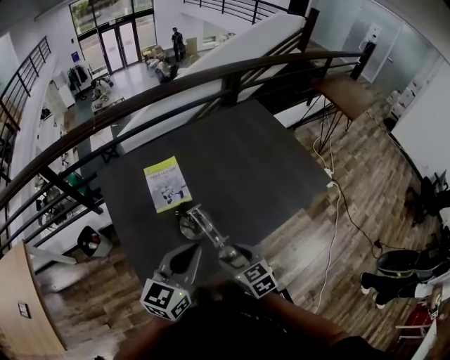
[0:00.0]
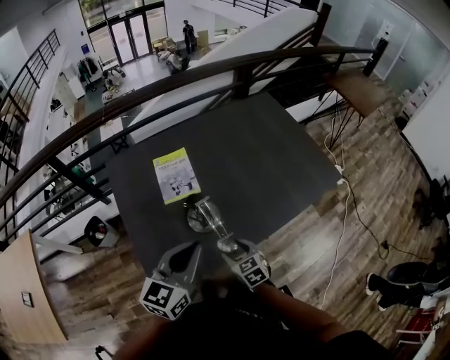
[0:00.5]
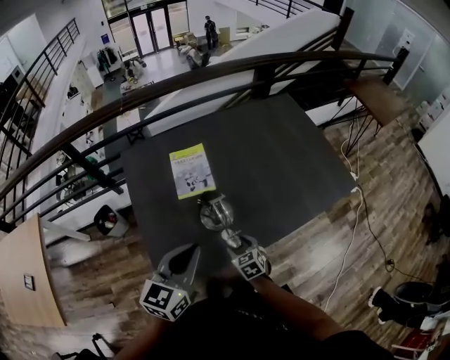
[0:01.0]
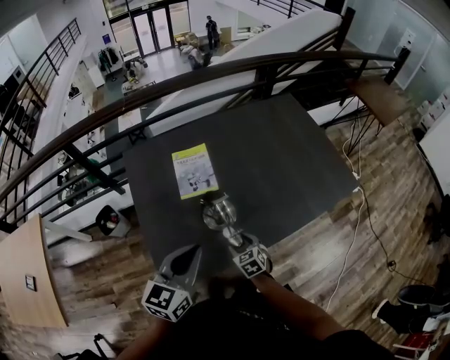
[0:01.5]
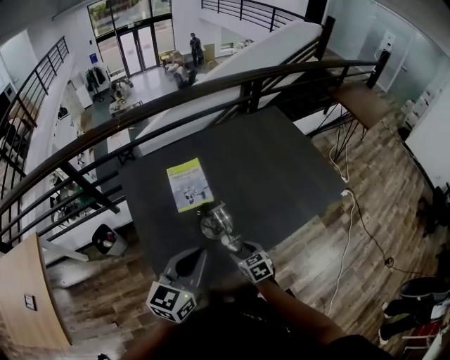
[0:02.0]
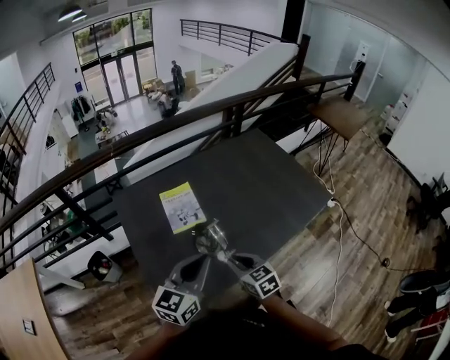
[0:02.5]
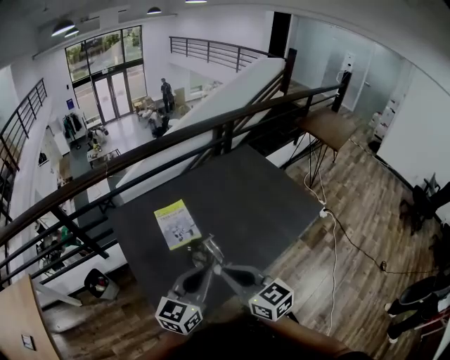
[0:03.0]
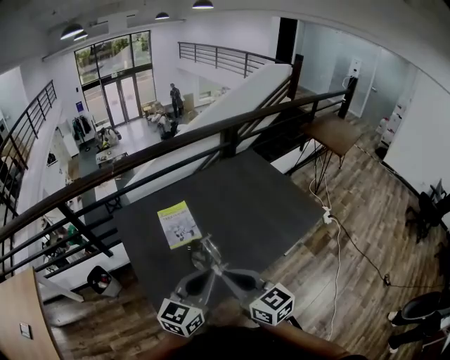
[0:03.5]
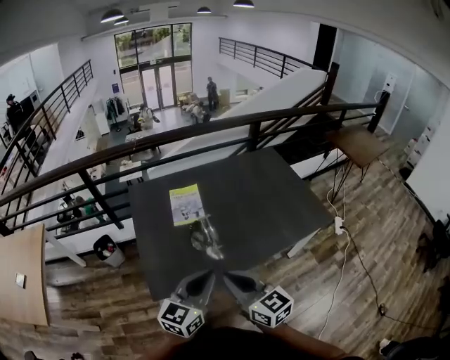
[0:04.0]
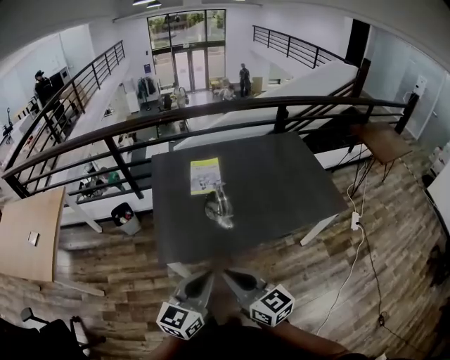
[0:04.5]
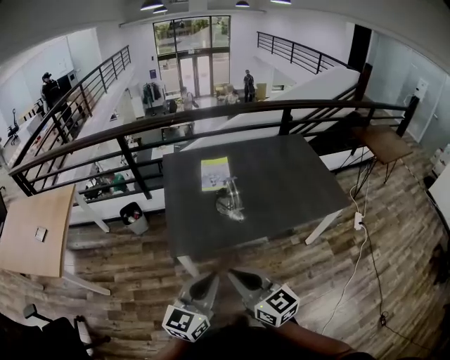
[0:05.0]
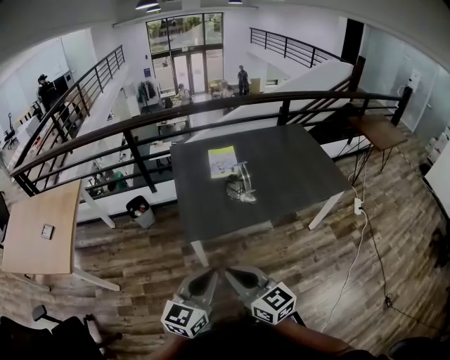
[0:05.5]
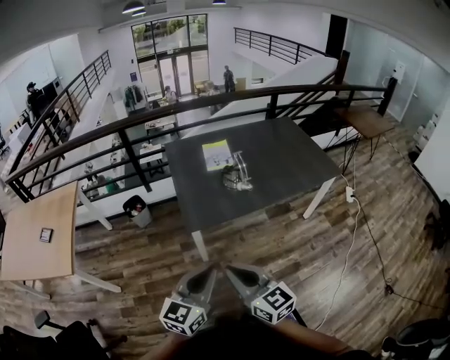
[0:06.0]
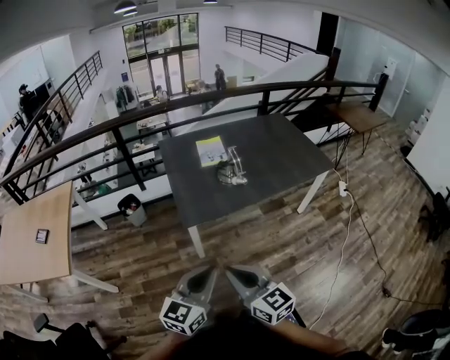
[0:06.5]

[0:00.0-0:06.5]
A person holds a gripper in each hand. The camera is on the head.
0:00.0 to 0:02.0: The right gripper is displaced downward by roughly 10 cm; the left gripper is displaced to the left by about 5 cm.
0:02.0 to 0:04.5: The right gripper goes some 40 cm upward and backward, angles its fingers upward, by approximately 40 degrees, and closes its fingers. The left gripper is displaced backward by some 25 cm.
0:04.5 to 0:06.5: The two grippers go about 25 cm backward and to the left.

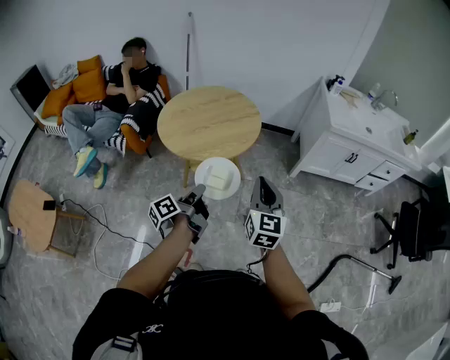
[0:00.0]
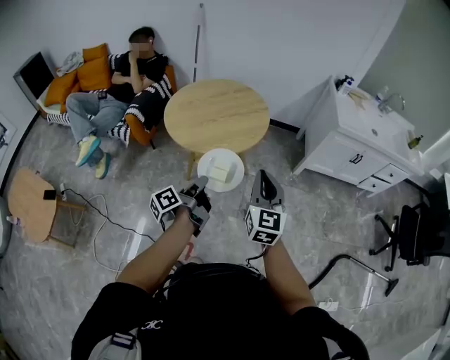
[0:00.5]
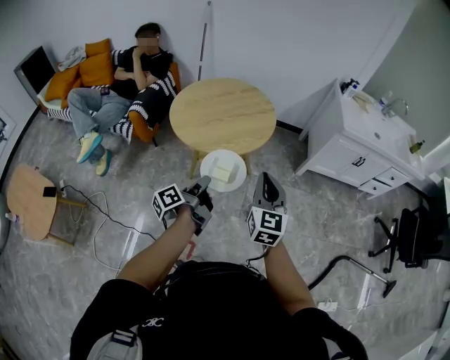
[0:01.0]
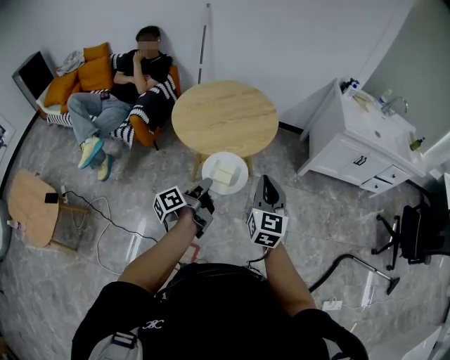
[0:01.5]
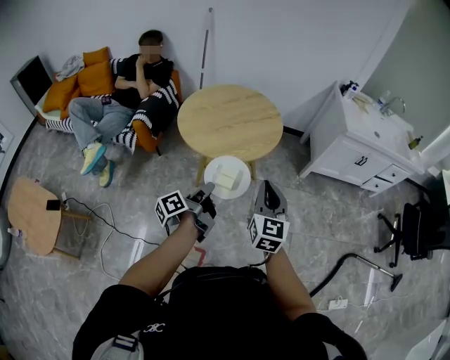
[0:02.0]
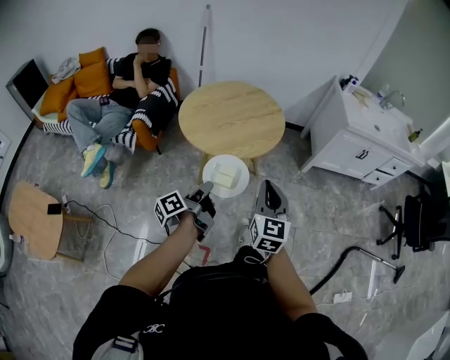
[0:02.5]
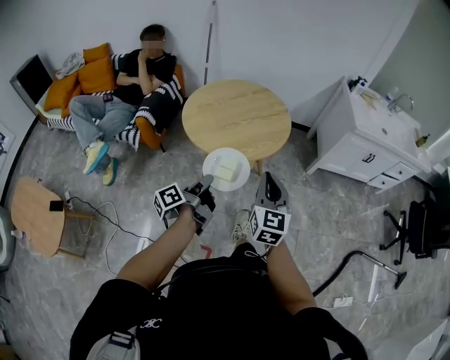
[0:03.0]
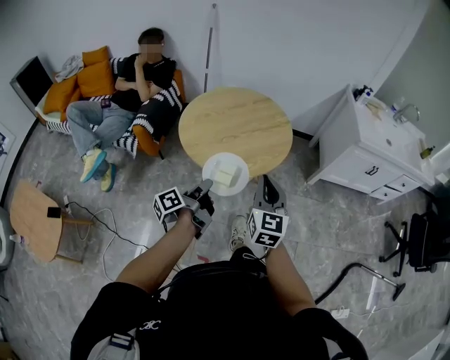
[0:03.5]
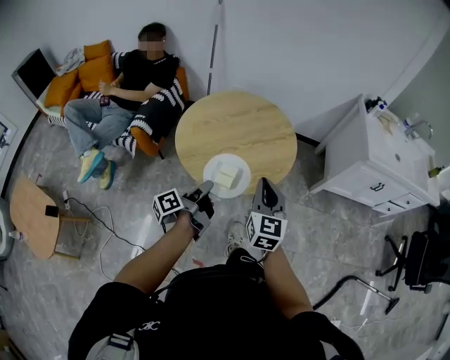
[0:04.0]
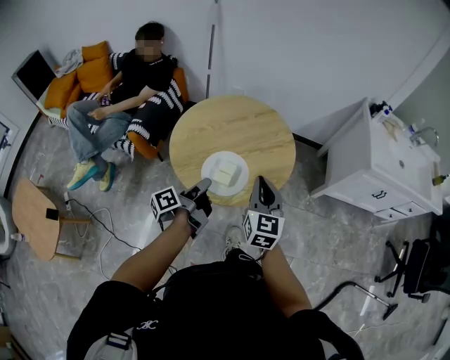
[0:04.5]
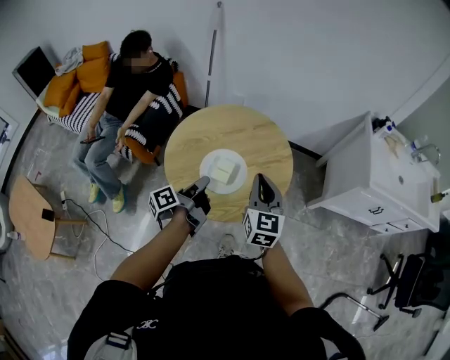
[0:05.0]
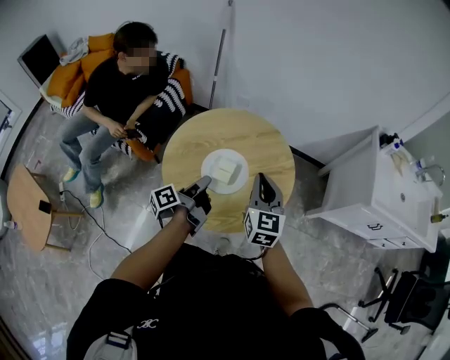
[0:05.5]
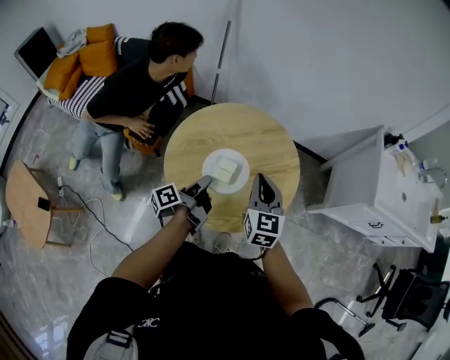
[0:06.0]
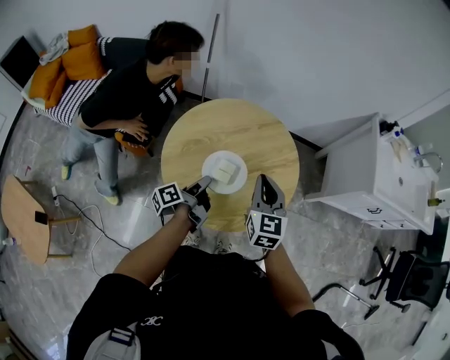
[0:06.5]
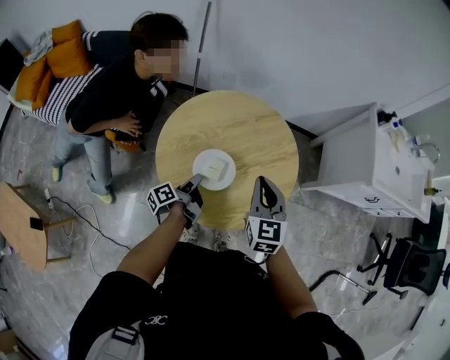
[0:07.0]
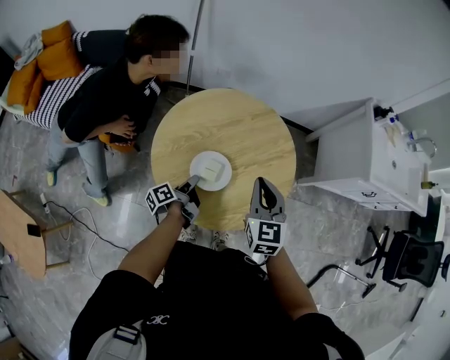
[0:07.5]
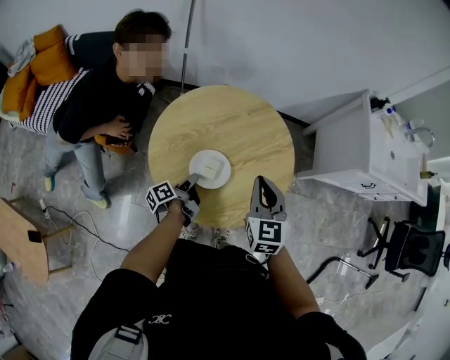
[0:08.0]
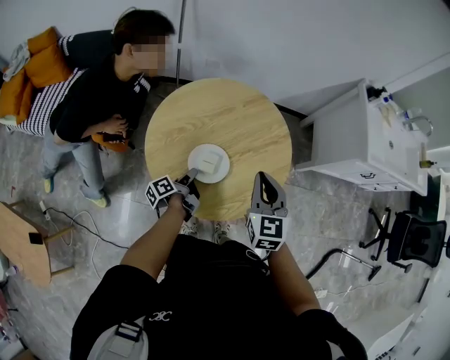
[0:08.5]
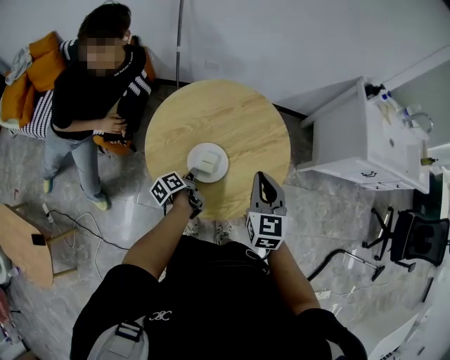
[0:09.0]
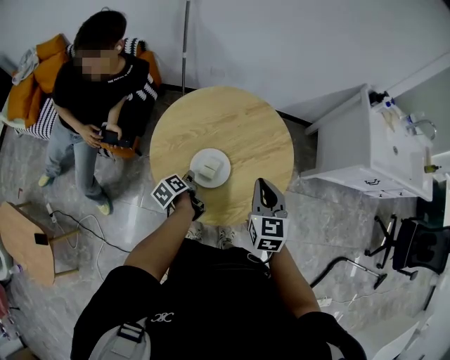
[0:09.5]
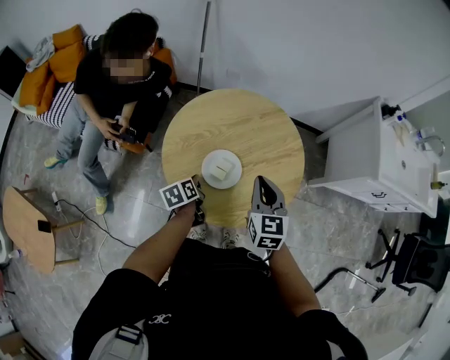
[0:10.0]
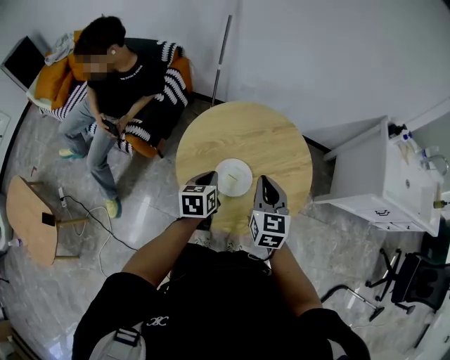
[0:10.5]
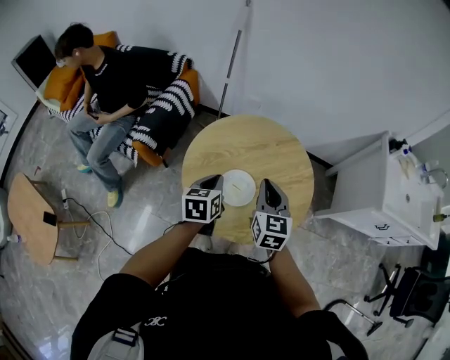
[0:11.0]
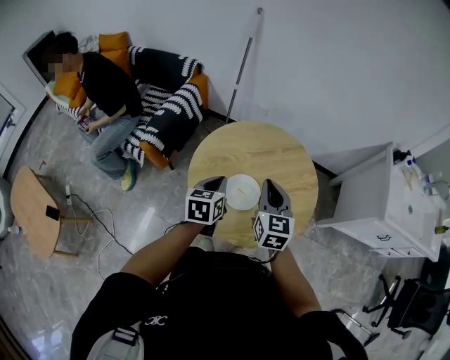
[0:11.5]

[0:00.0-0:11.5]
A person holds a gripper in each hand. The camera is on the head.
0:00.0 to 0:02.0: The right gripper shifts by about 10 cm.
0:02.0 to 0:04.0: The right gripper moves approximately 20 cm.
0:04.0 to 0:06.0: The right gripper changes place by approximately 20 cm.
0:09.5 to 0:11.5: The right gripper shifts by approximately 10 cm.

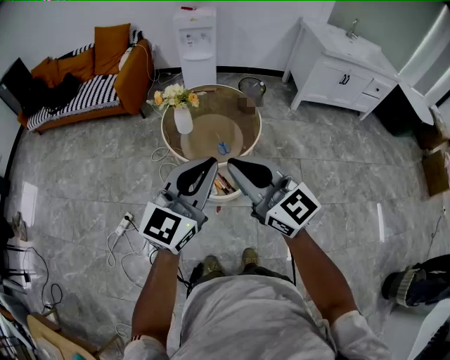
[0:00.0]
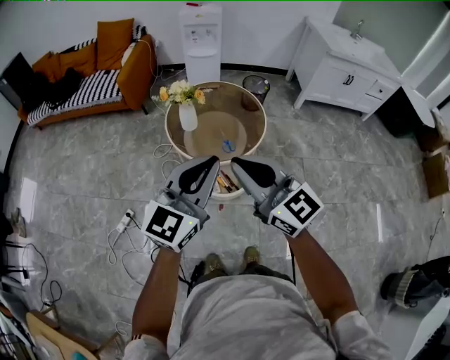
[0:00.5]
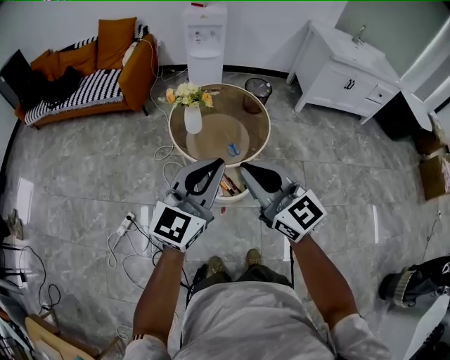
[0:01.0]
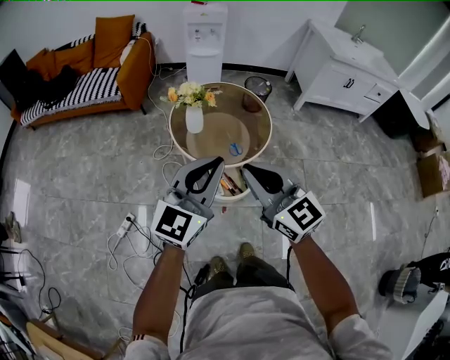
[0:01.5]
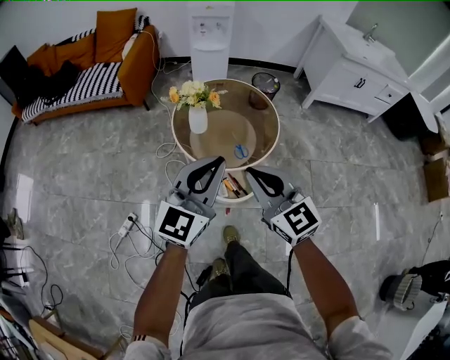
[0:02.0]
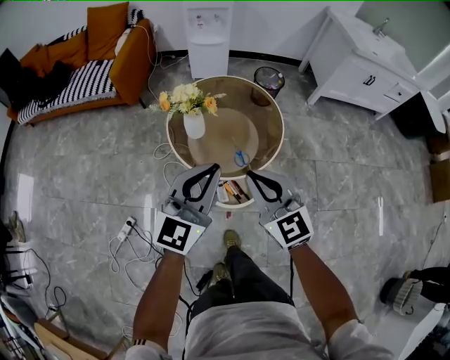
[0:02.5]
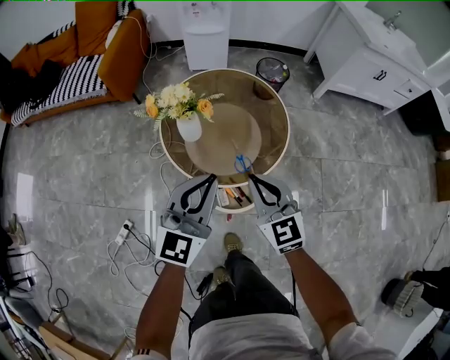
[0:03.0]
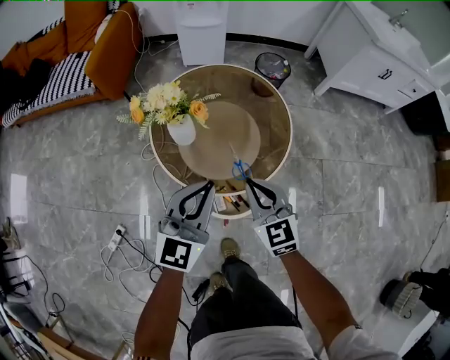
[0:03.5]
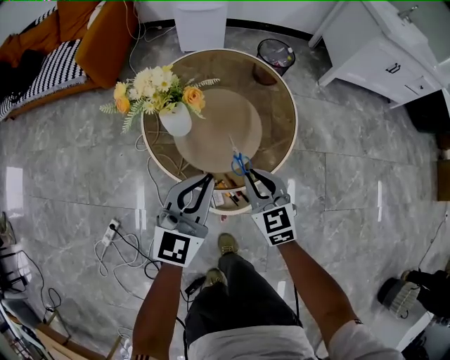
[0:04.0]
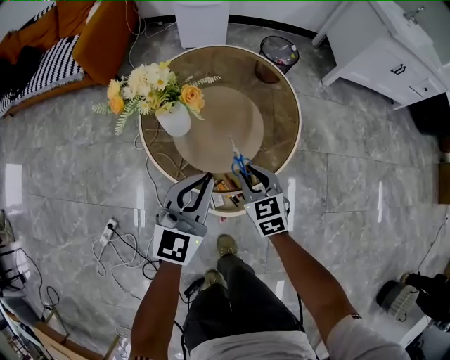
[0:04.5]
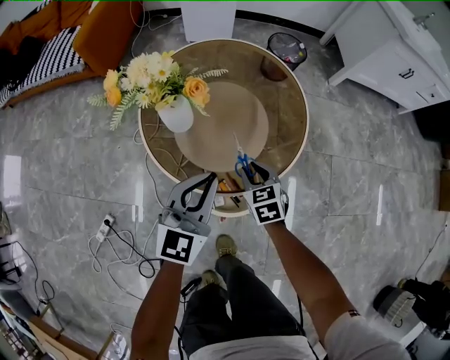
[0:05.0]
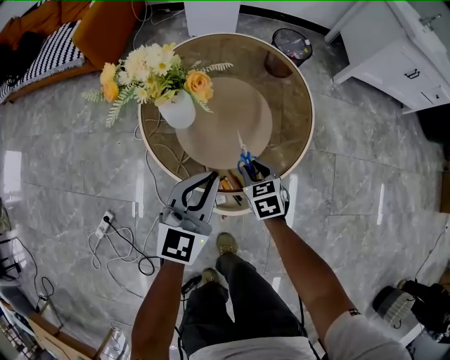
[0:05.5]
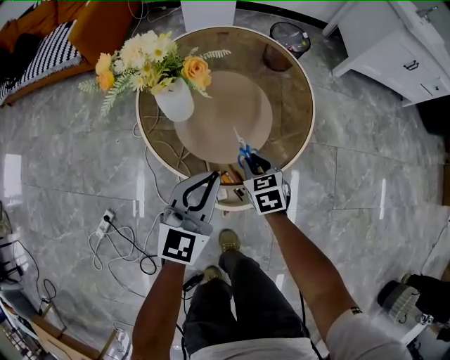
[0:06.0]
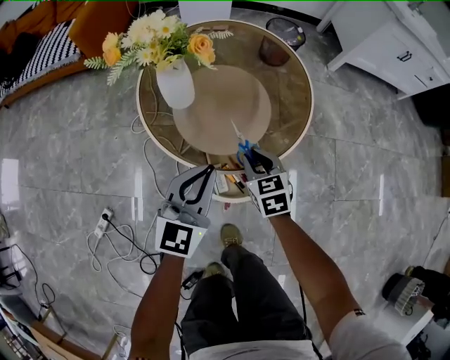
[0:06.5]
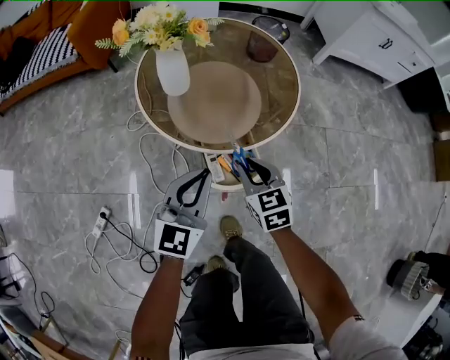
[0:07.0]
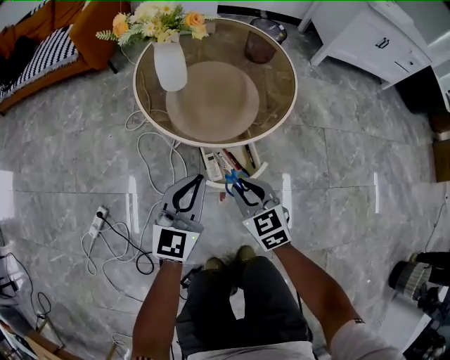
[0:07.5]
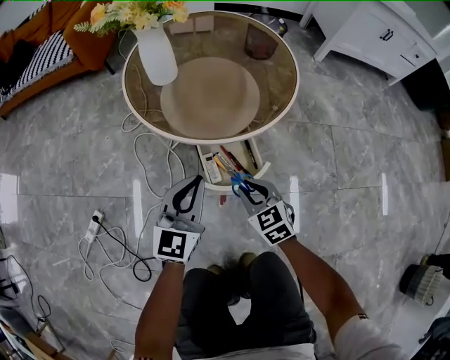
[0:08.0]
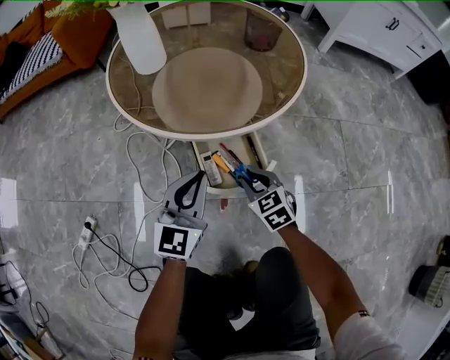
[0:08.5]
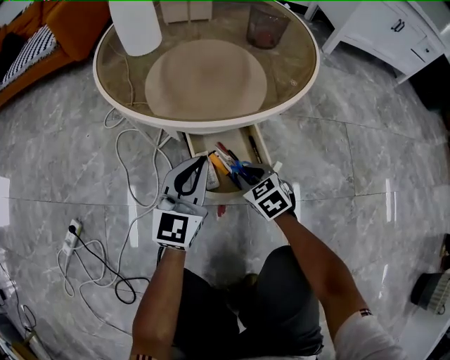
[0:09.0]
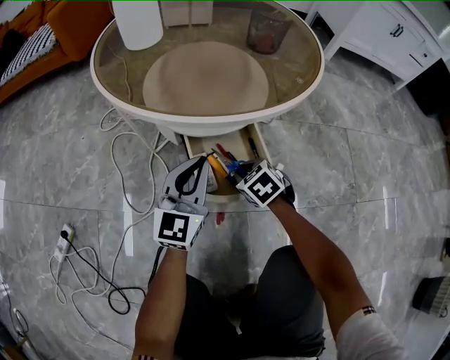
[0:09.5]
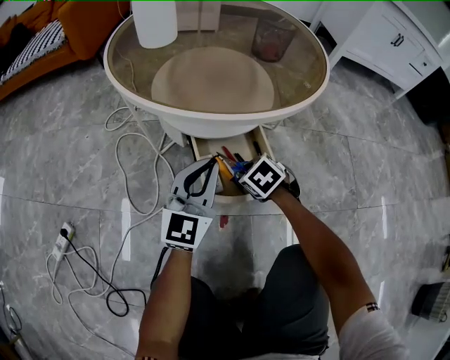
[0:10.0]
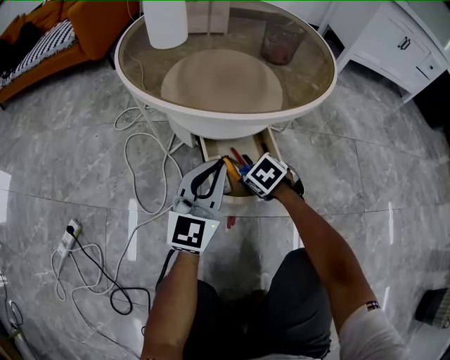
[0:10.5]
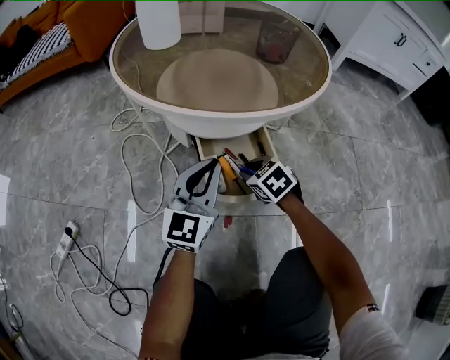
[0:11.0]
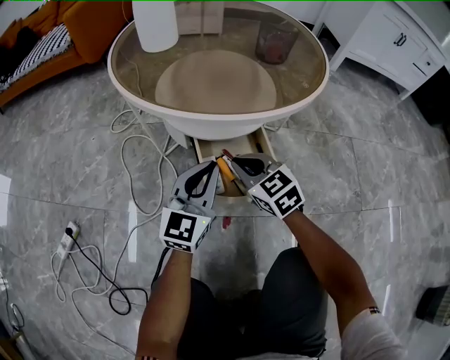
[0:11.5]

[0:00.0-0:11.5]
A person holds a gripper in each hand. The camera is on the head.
0:00.0 to 0:02.0: The left gripper goes about 15 cm forward, to the left and downward, while the right gripper travels downward, forward and to the left by about 15 cm.
0:02.0 to 0:04.0: Both grippers travel together downward and forward, roughly 35 cm. The right gripper changes its angle by roughly 20 degrees.
0:04.0 to 0:06.0: The left gripper shifts about 10 cm downward; the right gripper heads downward, covering roughly 15 cm, and changes its angle by about 20 degrees.
0:06.0 to 0:07.5: Both grippers travel together backward, roughly 20 cm.
0:07.5 to 0:09.5: The grippers both shift downward by roughly 30 cm. The right gripper rotates roughly 20 degrees.
0:09.5 to 0:11.5: The right gripper goes roughly 10 cm upward, and changes its angle by approximately 30 degrees.
